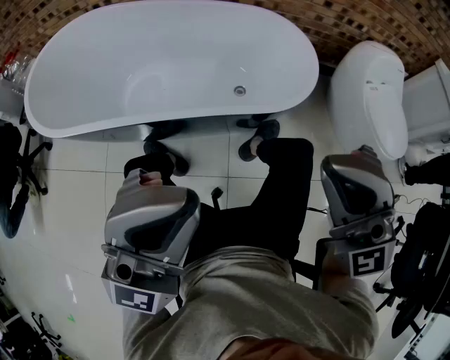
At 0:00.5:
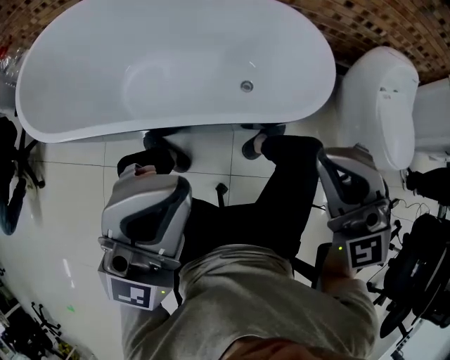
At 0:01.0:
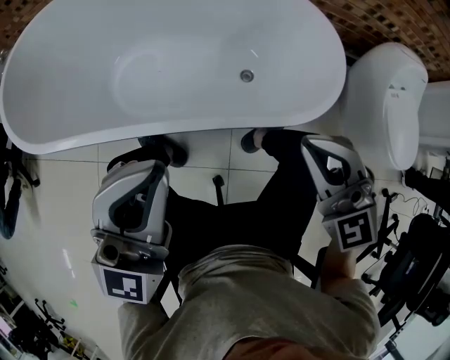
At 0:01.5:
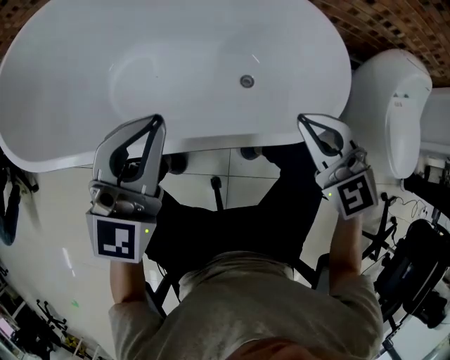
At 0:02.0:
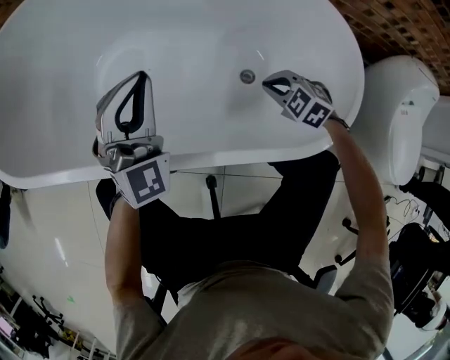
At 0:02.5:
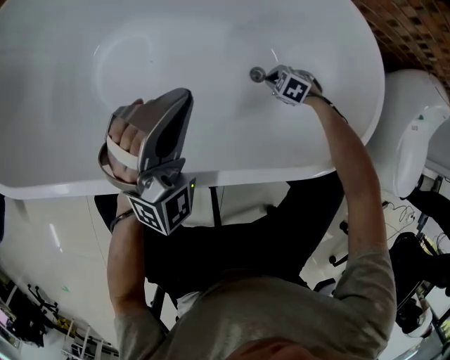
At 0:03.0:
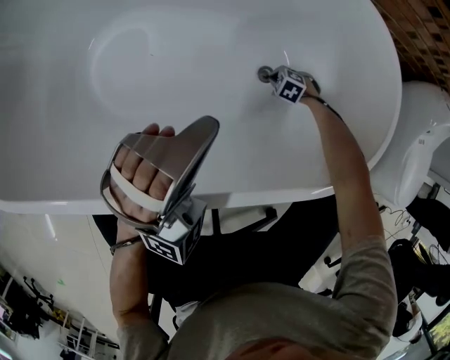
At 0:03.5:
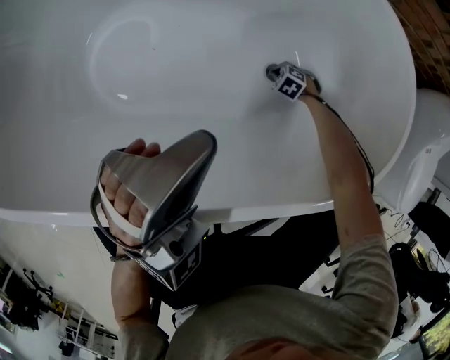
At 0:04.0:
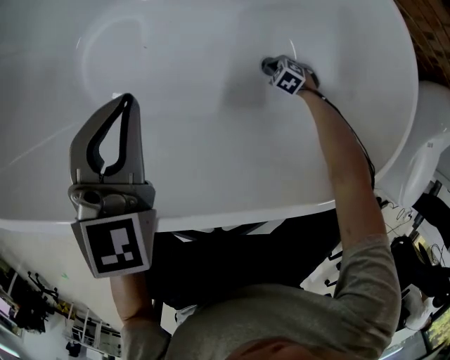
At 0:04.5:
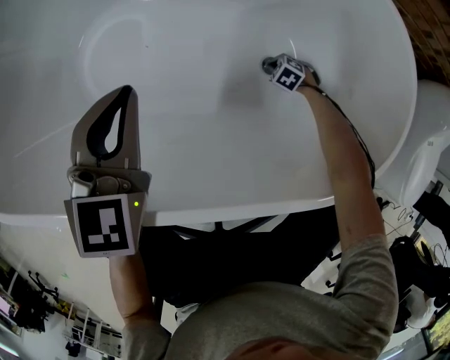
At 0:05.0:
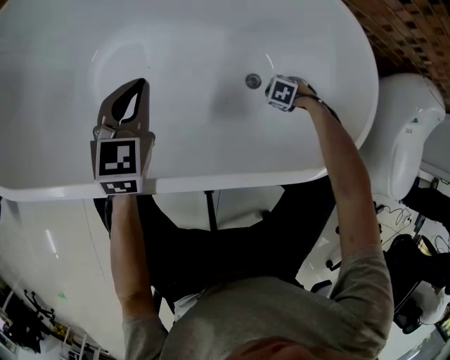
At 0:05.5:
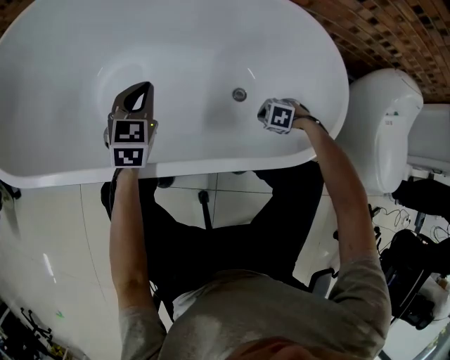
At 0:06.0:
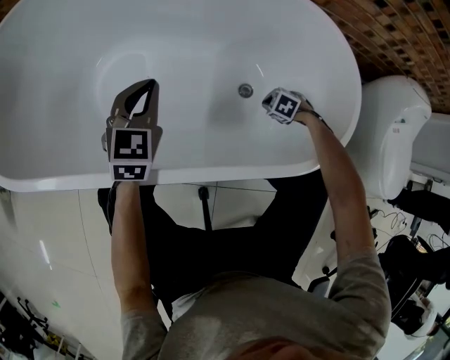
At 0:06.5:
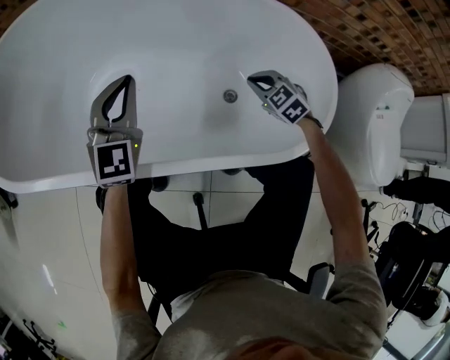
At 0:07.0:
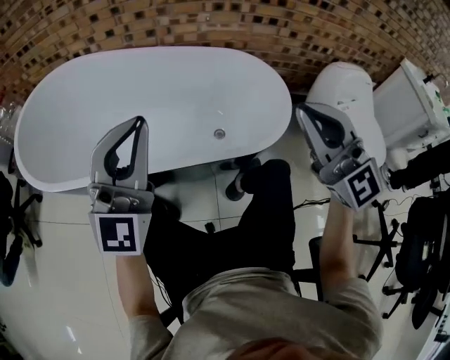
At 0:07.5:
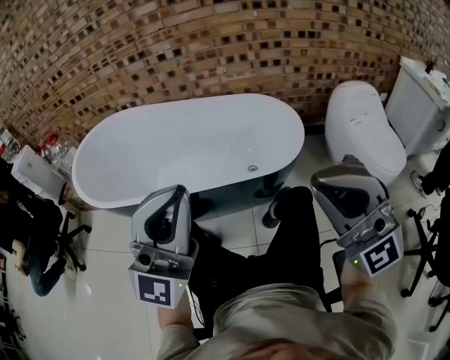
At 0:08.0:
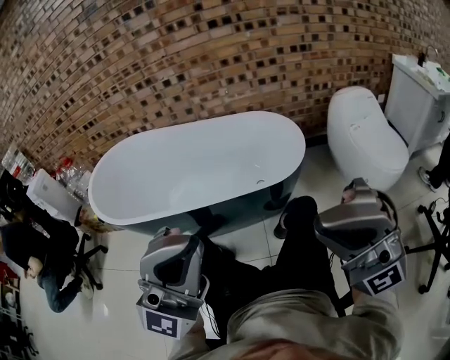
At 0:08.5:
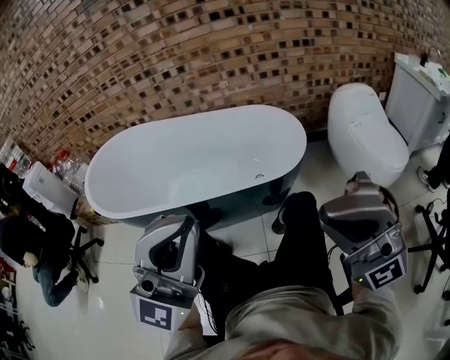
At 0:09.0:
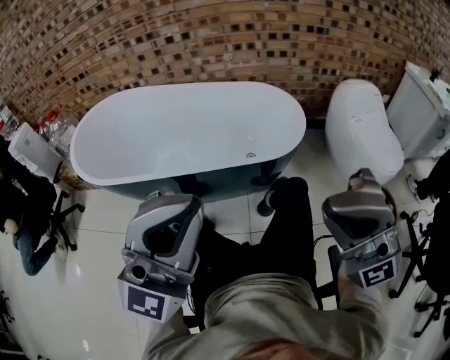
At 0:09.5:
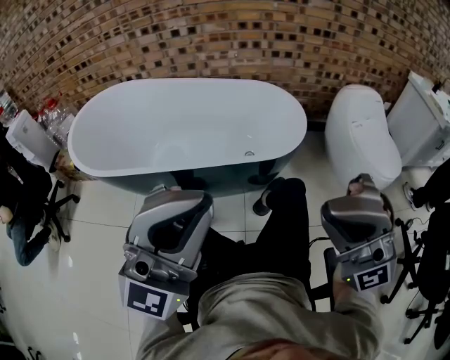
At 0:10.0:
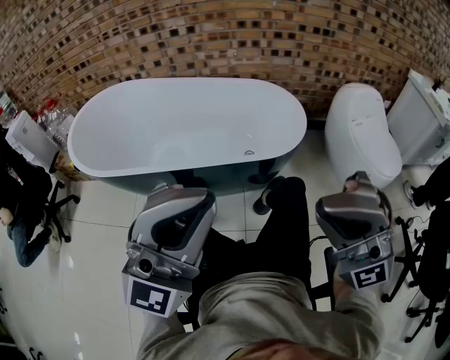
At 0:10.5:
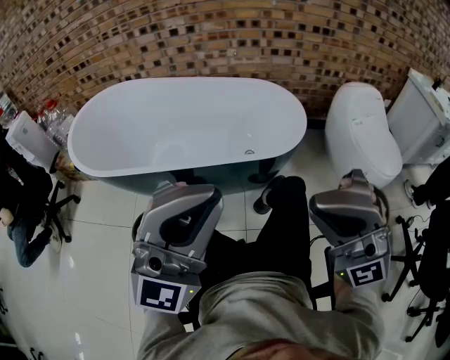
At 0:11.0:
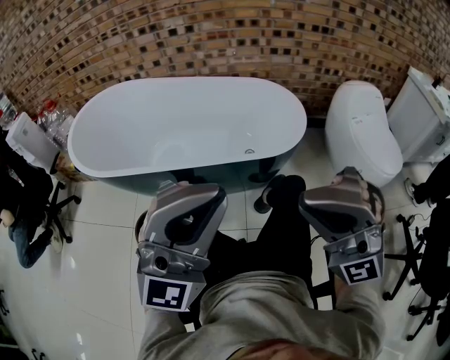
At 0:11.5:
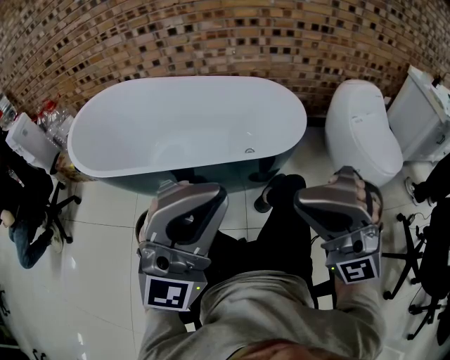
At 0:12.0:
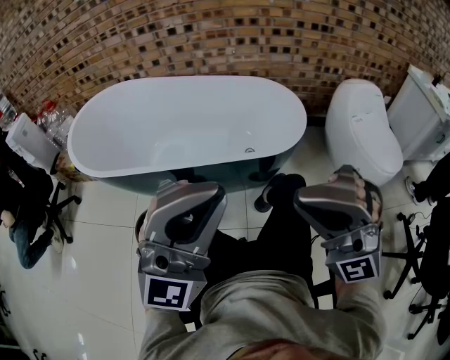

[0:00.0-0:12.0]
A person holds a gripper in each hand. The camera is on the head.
0:00.0 to 0:02.0: The right gripper moves downward and forward, about 60 cm, and tips its fingers downward by about 60 degrees. Meanwhile the left gripper heads forward and downward, covering roughly 50 cm, and turns by approximately 50 degrees.
0:02.0 to 0:04.0: The right gripper travels downward by some 30 cm, and swivels some 20 degrees, while the left gripper heads downward, covering some 10 cm, and swivels about 40 degrees.
0:04.0 to 0:06.0: The right gripper moves upward, about 15 cm.
0:06.0 to 0:08.0: The pair of grippers is taken about 60 cm. The left gripper tips its fingers upward by some 60 degrees, while the right gripper shifts roughly 70 cm upward, and points its fingers roughly 110 degrees further upward.
0:08.0 to 0:10.0: The grippers make only small movements.
0:10.0 to 0:12.0: There are only small adjustments of the grippers.

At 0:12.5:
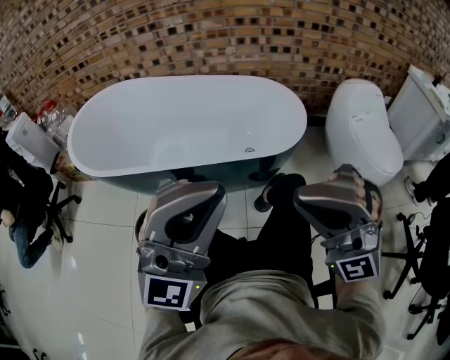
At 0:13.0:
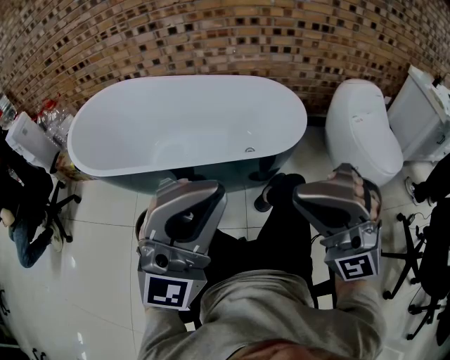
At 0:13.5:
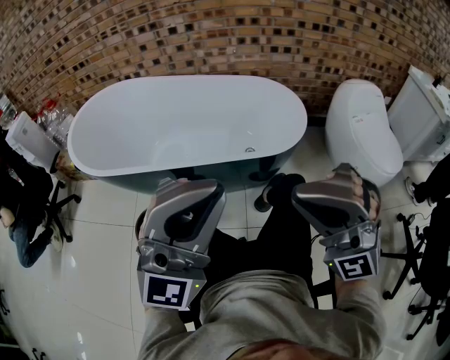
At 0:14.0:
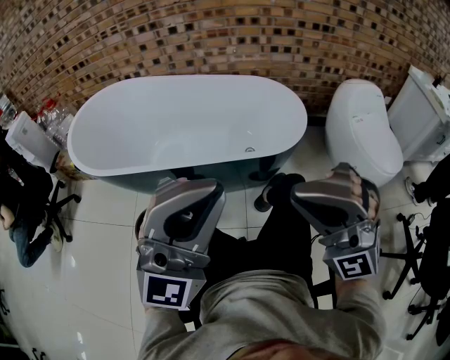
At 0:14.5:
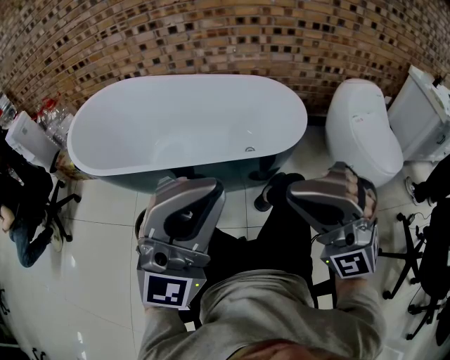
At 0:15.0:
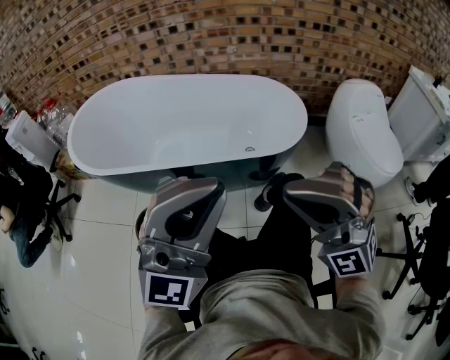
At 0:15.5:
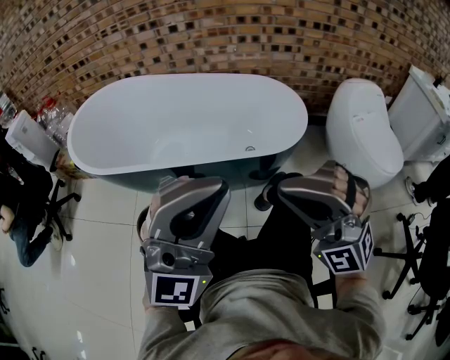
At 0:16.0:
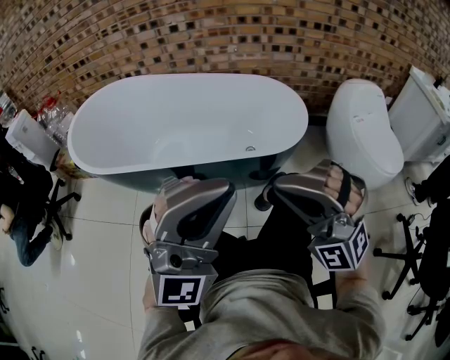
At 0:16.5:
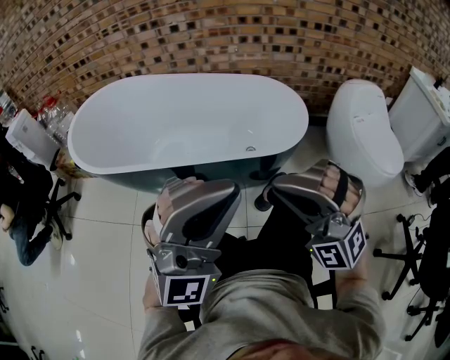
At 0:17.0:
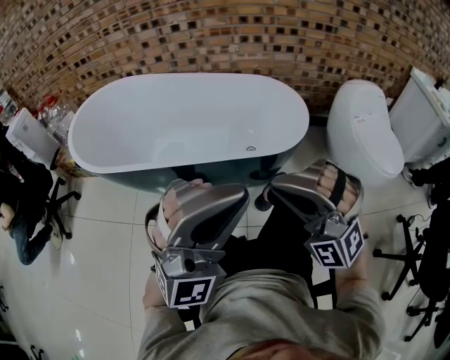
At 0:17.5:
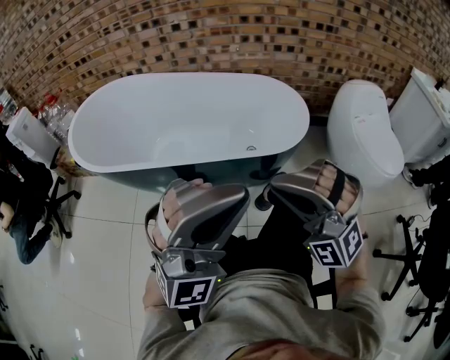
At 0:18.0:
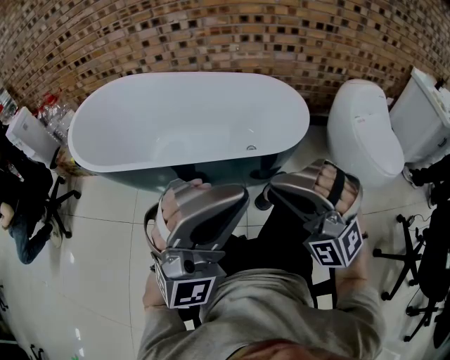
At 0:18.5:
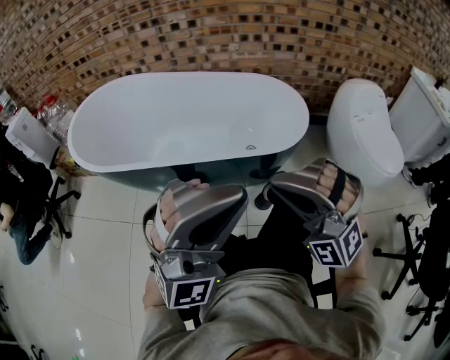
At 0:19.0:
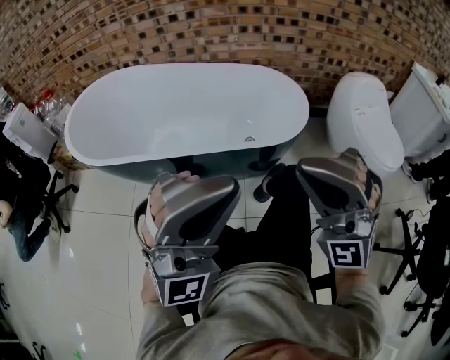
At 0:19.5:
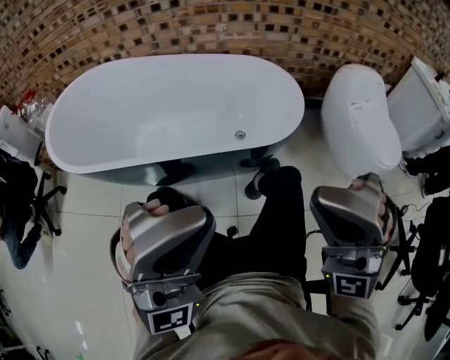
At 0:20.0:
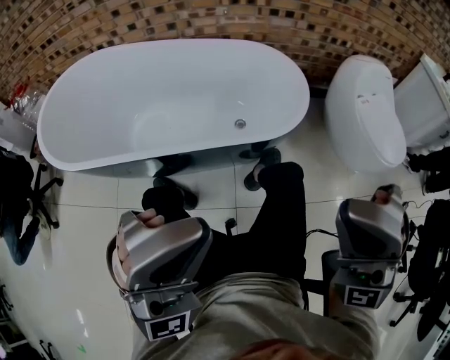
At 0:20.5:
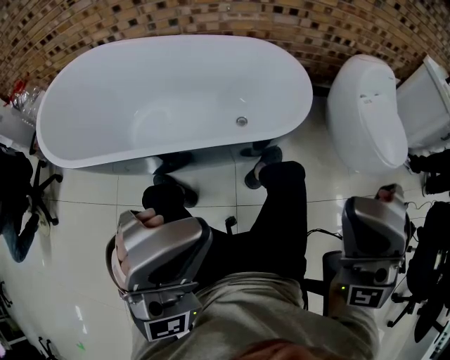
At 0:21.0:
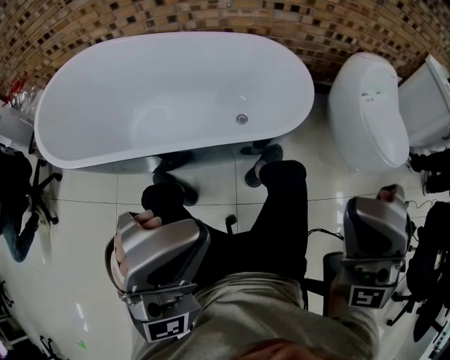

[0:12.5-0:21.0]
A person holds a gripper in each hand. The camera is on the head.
0:12.5 to 0:14.5: The grippers make only small movements.
0:14.5 to 0:16.5: The right gripper heads downward, covering roughly 5 cm.
0:16.5 to 0:19.0: The right gripper travels upward by roughly 5 cm.
0:19.0 to 0:21.0: The left gripper travels forward by about 5 cm. Meanwhile the right gripper changes place by approximately 5 cm.

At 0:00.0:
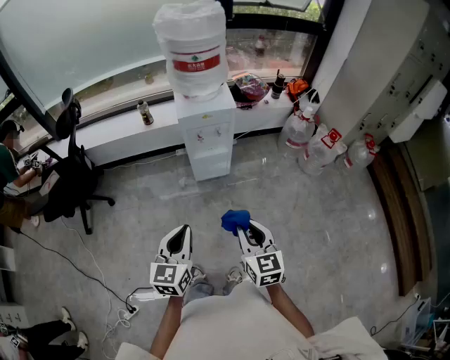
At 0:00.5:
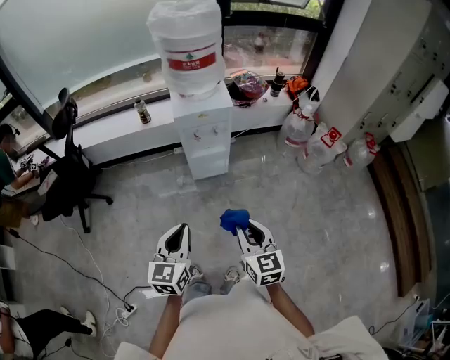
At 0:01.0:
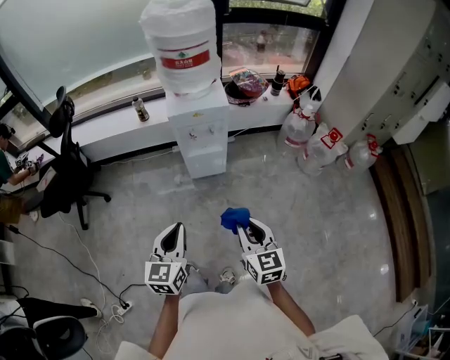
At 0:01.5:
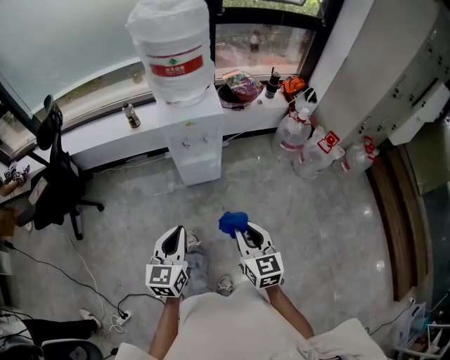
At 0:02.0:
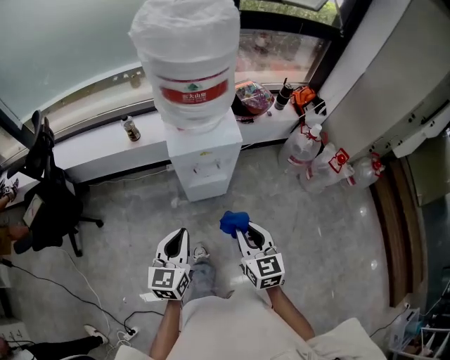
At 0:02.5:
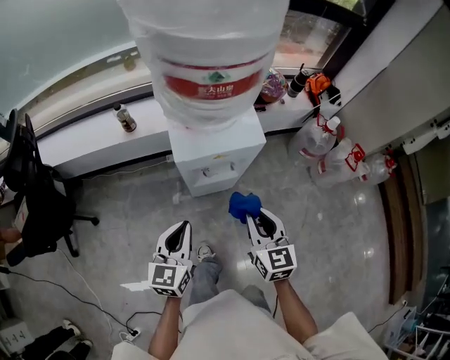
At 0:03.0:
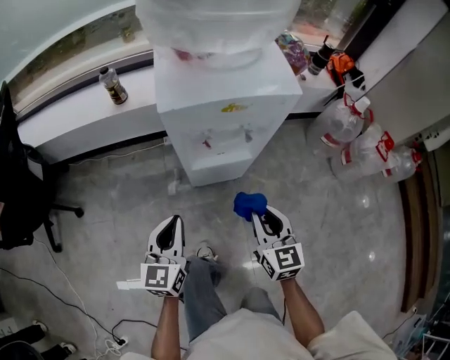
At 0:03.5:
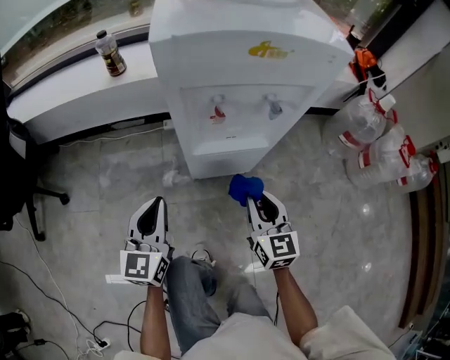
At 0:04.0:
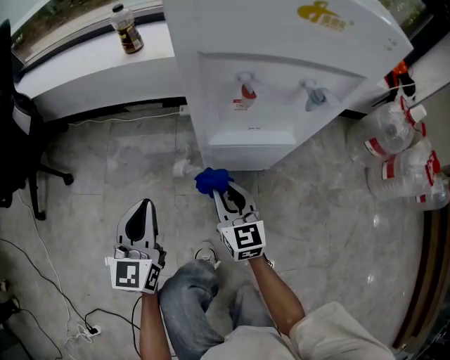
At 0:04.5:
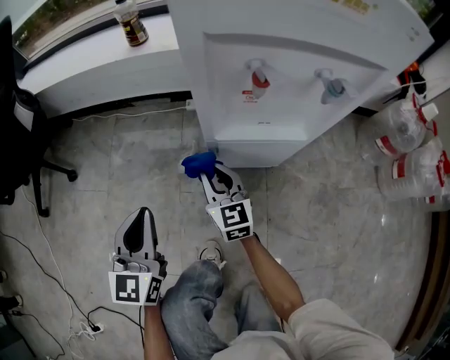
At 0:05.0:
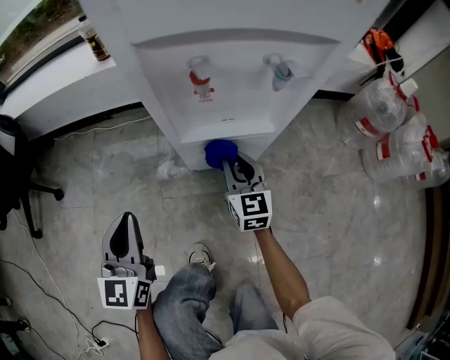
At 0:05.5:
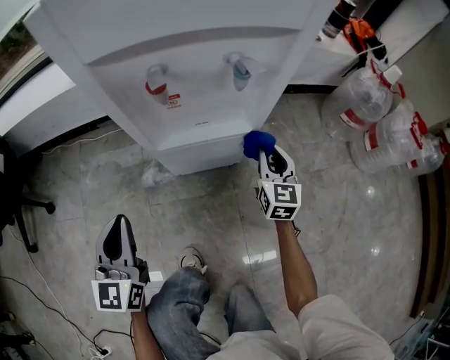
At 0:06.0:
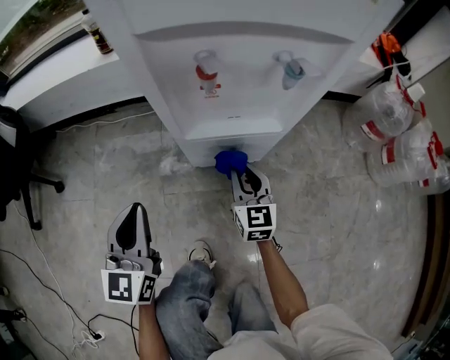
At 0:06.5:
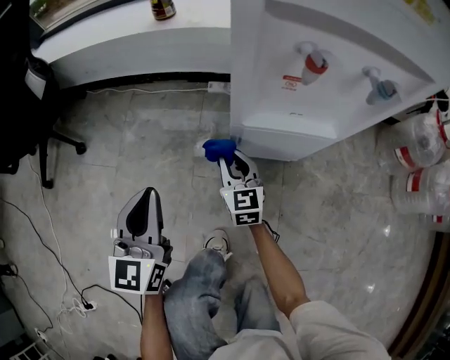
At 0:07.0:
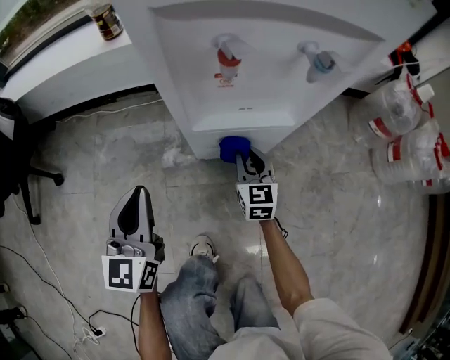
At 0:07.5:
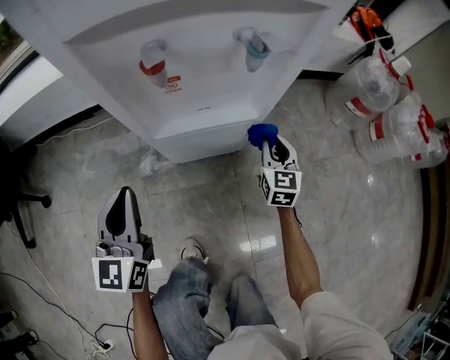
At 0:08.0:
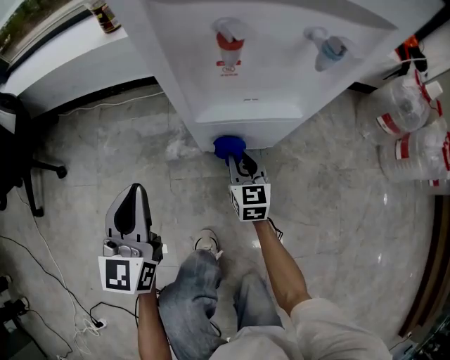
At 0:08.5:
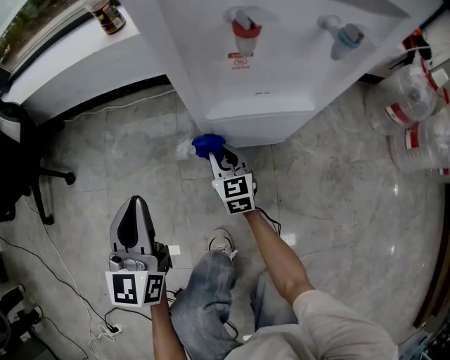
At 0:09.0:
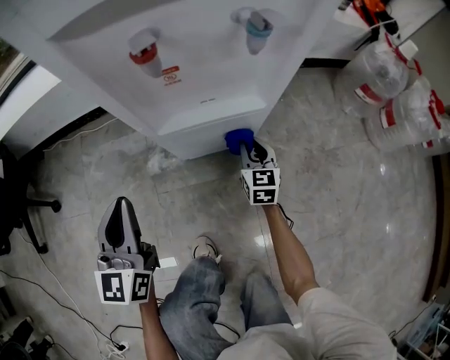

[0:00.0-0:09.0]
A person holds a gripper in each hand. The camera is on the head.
0:00.0 to 0:02.0: The two grippers go about 25 cm forward.
0:02.0 to 0:04.5: The left gripper goes about 40 cm downward, and swivels about 20 degrees. The right gripper goes about 60 cm downward and forward, and rotates about 20 degrees.
0:04.5 to 0:07.0: The left gripper goes left and right, some 10 cm each way, reversing 2 times. Meanwhile the right gripper swings left and right, roughly 30 cm each way, with 2 reversals.
0:07.0 to 0:09.0: The left gripper swings left and right, about 10 cm each way, with 2 reversals, while the right gripper swings left and right, approximately 30 cm each way, with 2 reversals.
